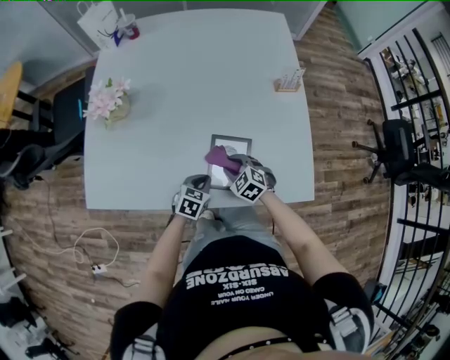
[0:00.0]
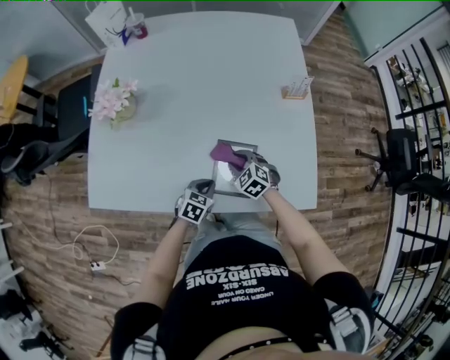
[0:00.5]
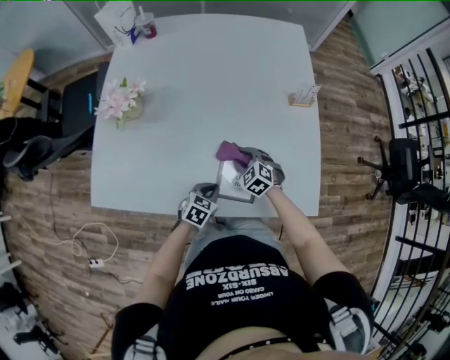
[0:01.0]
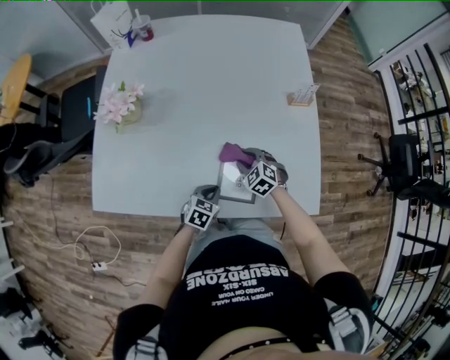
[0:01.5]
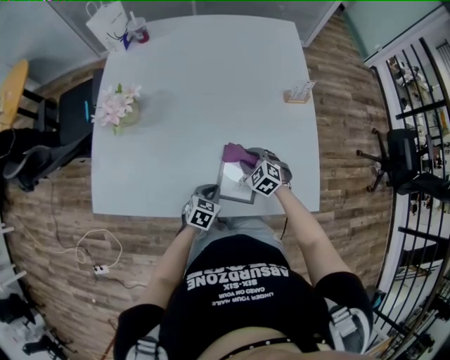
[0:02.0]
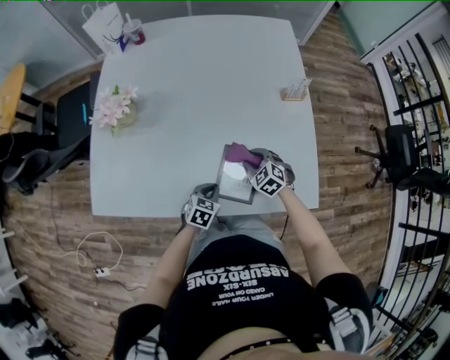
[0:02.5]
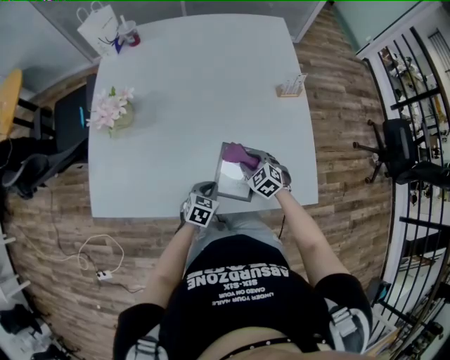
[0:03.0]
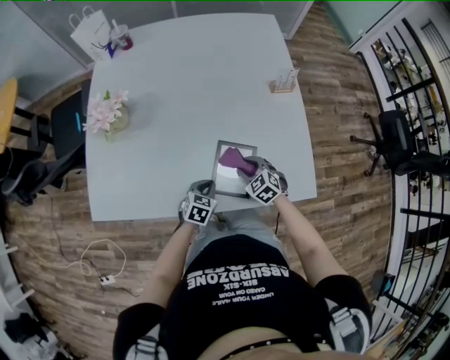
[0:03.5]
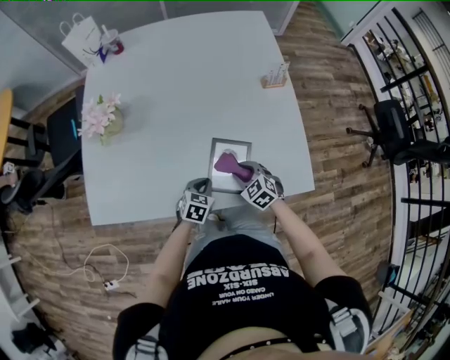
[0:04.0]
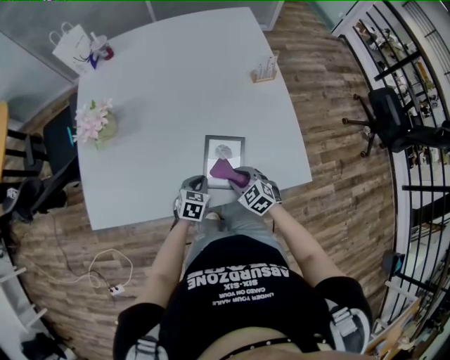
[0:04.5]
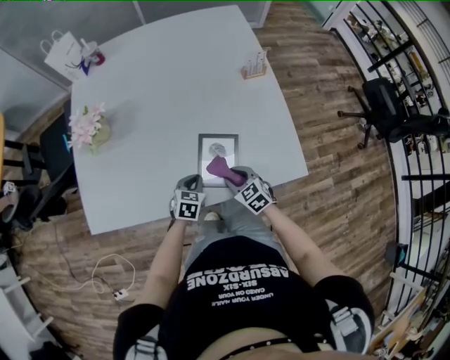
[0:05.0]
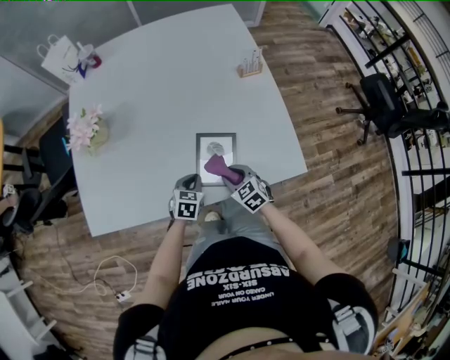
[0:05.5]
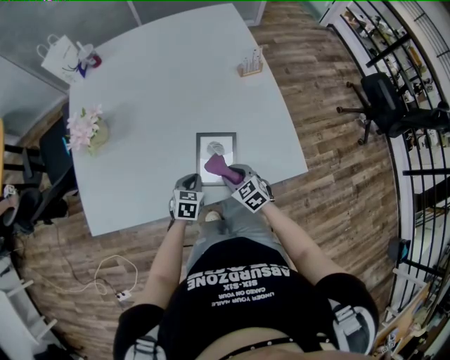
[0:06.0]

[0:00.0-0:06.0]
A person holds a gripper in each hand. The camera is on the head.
0:00.0 to 0:02.0: The right gripper is displaced forward by some 5 cm.
0:02.0 to 0:04.0: The right gripper travels backward by roughly 10 cm.
0:04.0 to 0:06.0: There are only small adjustments of the grippers.

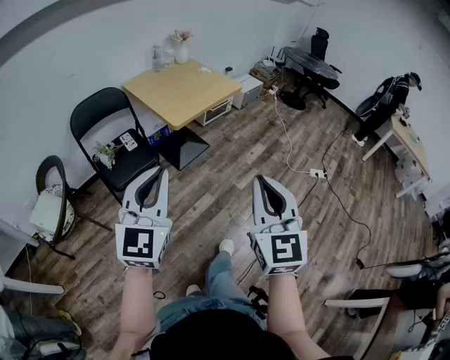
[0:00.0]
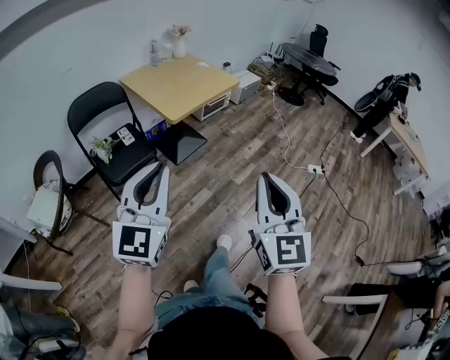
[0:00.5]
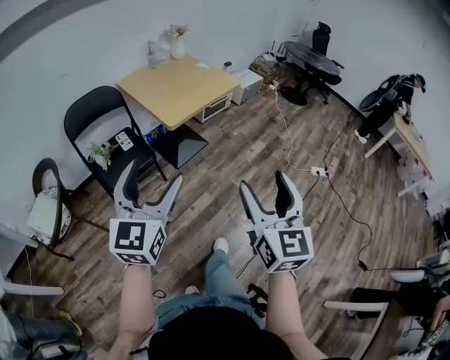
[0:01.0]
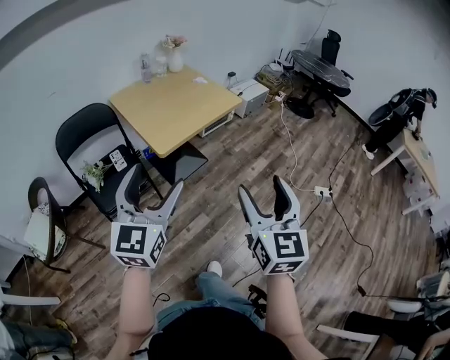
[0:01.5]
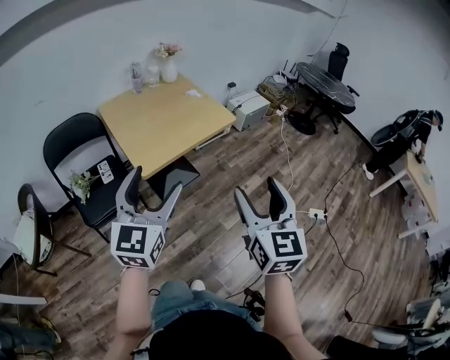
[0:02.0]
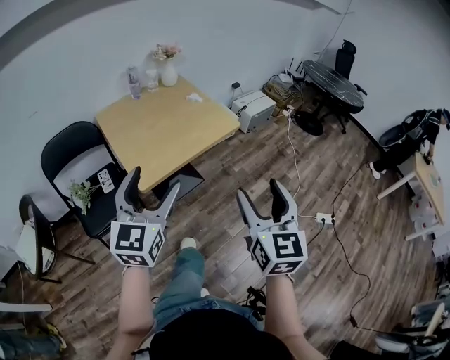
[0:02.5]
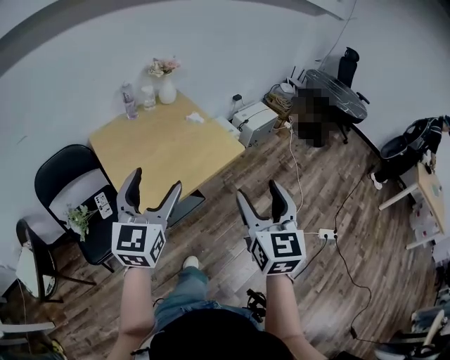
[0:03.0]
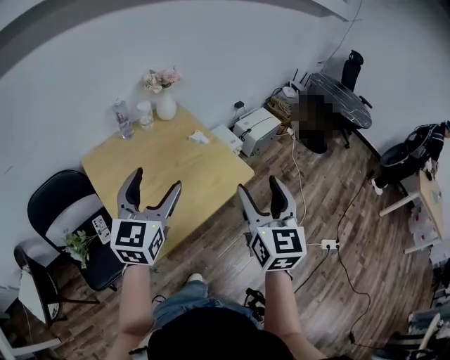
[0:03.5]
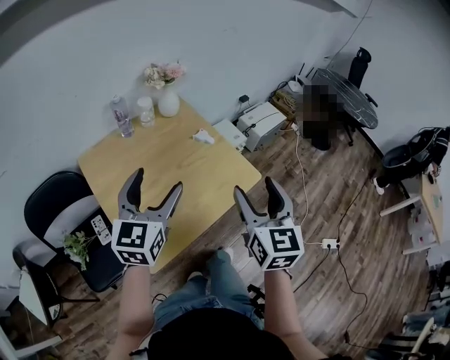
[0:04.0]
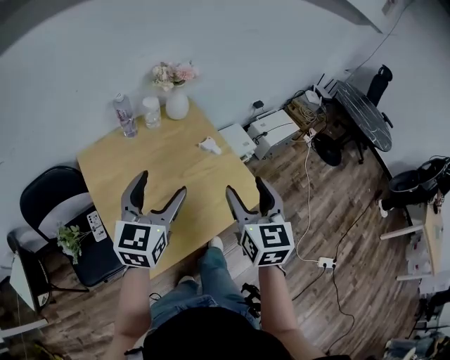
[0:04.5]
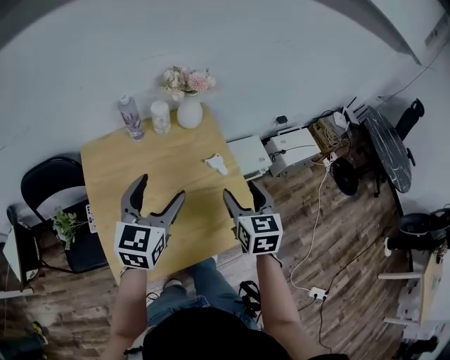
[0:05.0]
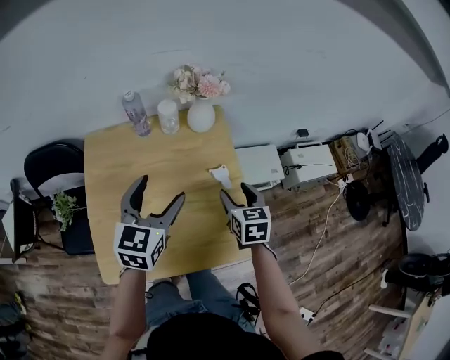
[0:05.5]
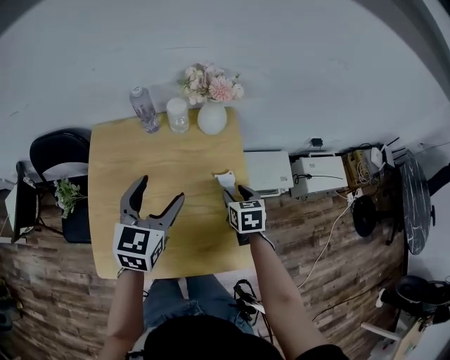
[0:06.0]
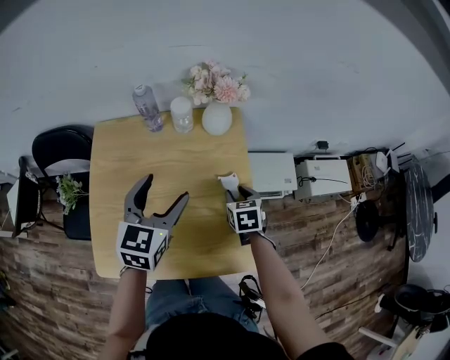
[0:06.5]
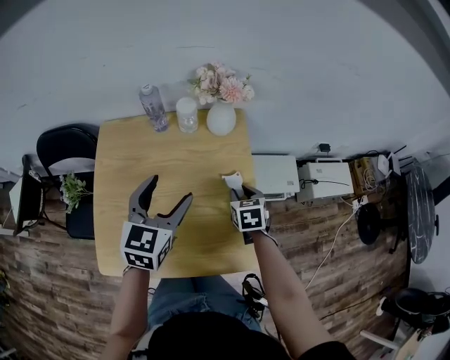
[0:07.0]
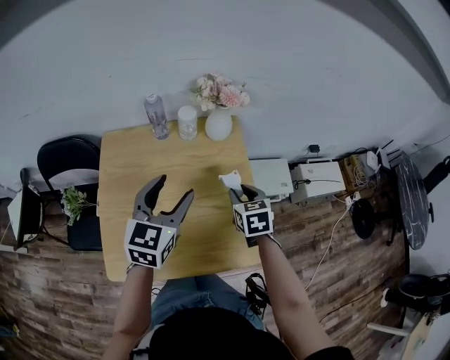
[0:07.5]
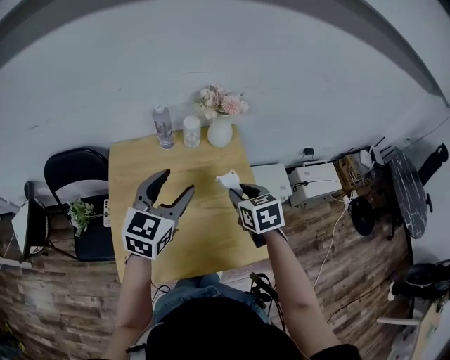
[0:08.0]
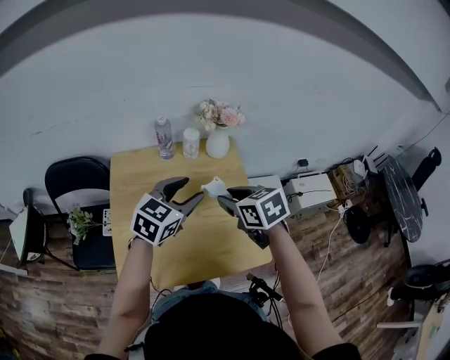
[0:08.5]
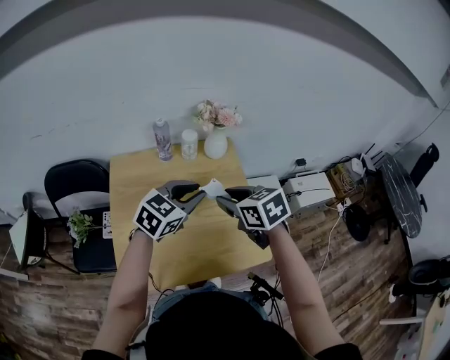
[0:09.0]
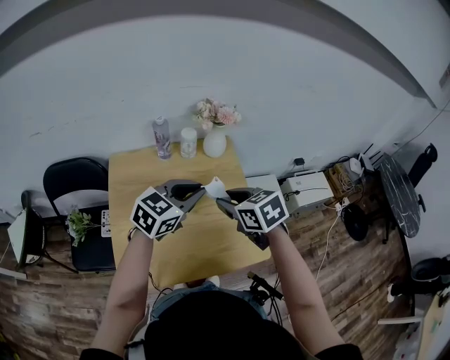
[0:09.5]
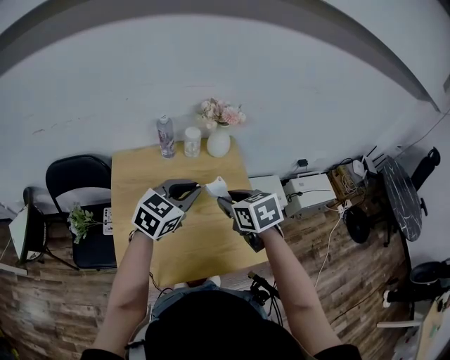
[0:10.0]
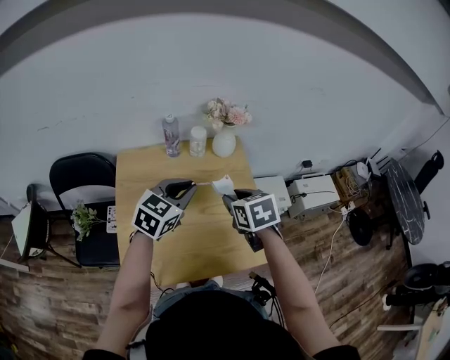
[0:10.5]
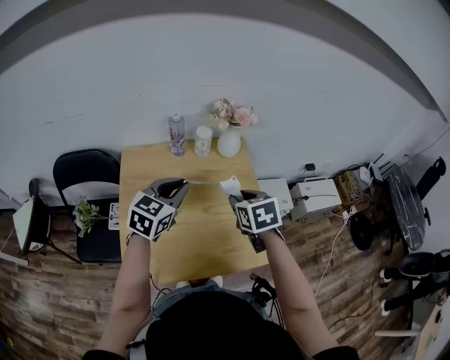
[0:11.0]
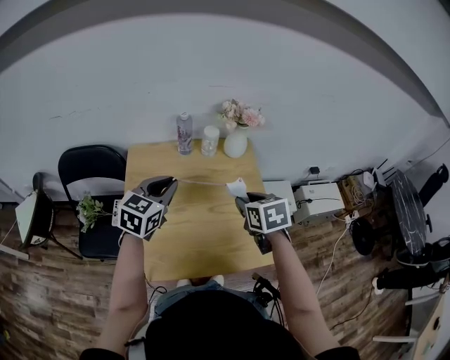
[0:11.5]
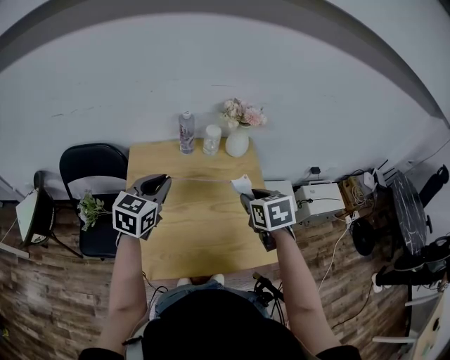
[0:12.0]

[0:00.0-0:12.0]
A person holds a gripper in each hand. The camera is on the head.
0:00.0 to 0:02.0: Both grippers move forward, some 35 cm. The left gripper opens. Meanwhile the right gripper opens.
0:02.0 to 0:04.0: The pair of grippers is taken forward, roughly 40 cm.
0:04.0 to 0:06.0: The left gripper shifts by some 20 cm, and changes its angle by about 30 degrees. The right gripper ends up about 40 cm from where it was, tips its fingers downward by about 40 degrees, and closes up.
0:06.0 to 0:08.0: The right gripper goes some 15 cm upward and to the left. The left gripper goes some 5 cm upward.
0:08.0 to 0:10.0: The right gripper shifts by some 5 cm. Meanwhile the left gripper shifts by about 5 cm, and closes.
0:10.0 to 0:12.0: The left gripper travels to the left by approximately 15 cm, and swivels some 20 degrees.

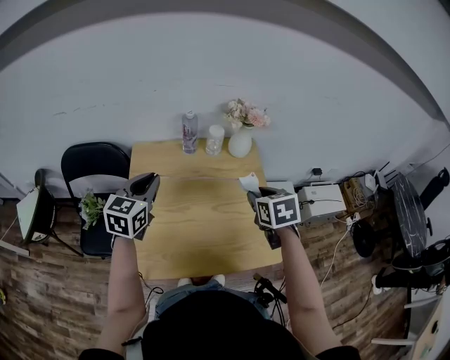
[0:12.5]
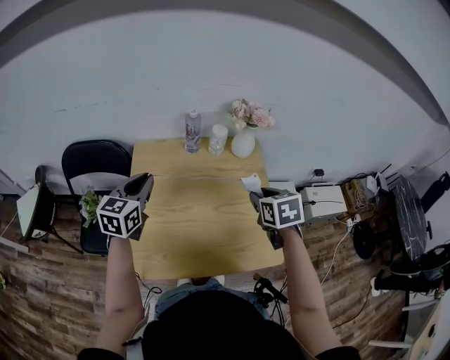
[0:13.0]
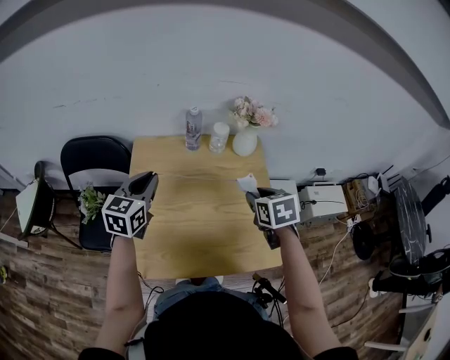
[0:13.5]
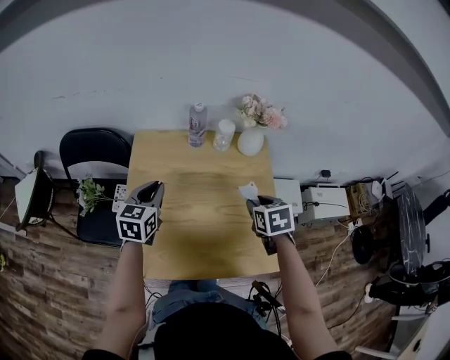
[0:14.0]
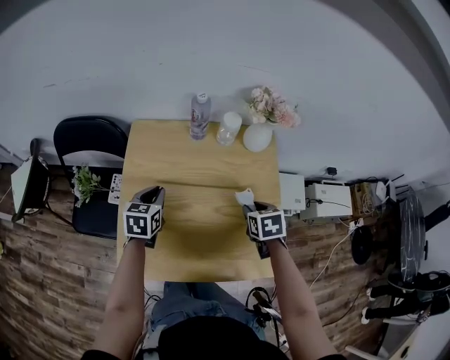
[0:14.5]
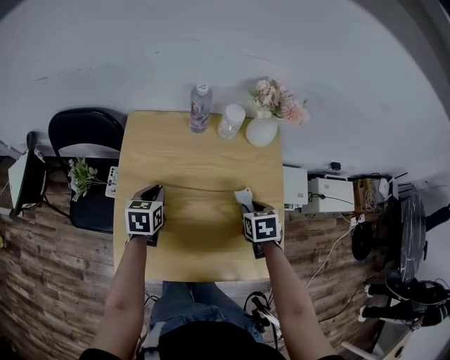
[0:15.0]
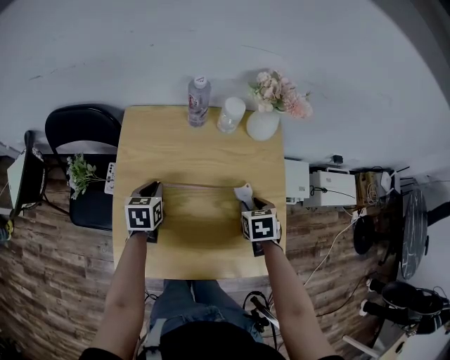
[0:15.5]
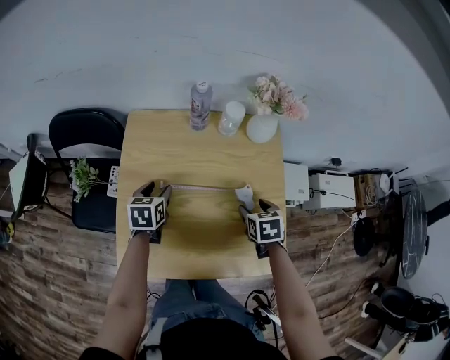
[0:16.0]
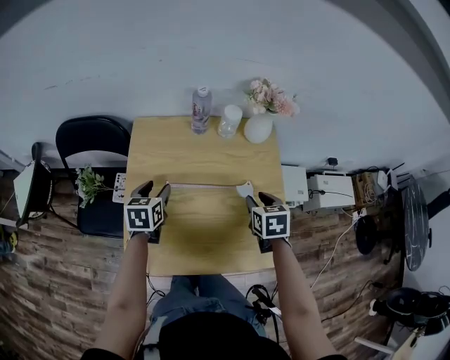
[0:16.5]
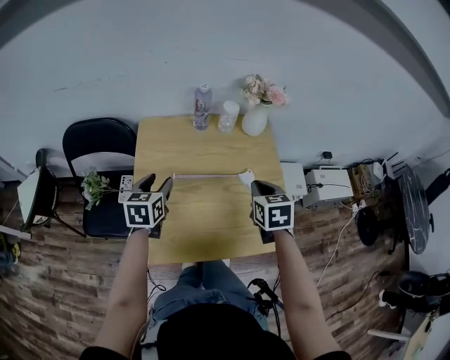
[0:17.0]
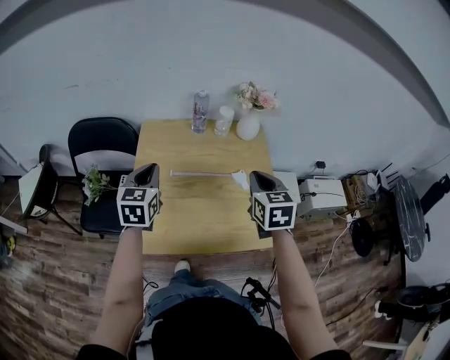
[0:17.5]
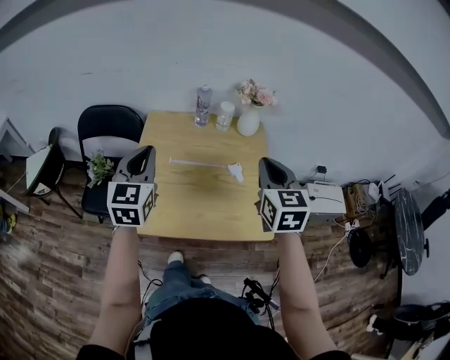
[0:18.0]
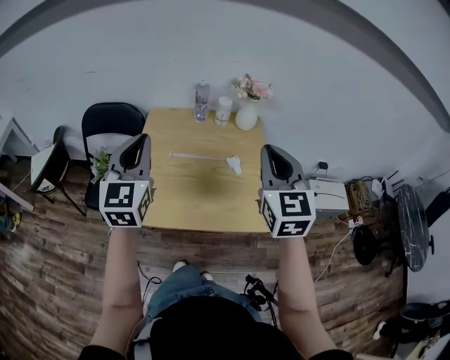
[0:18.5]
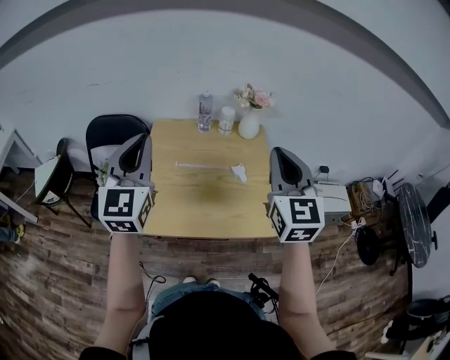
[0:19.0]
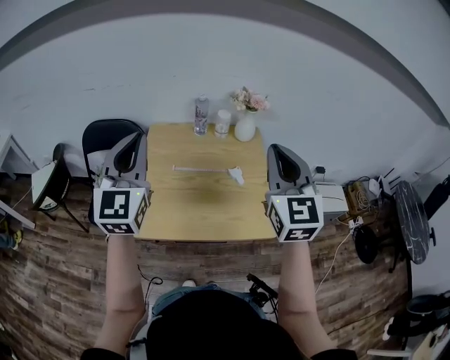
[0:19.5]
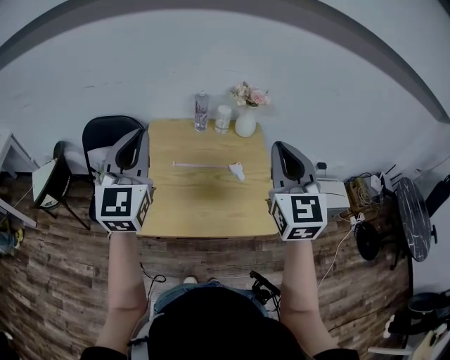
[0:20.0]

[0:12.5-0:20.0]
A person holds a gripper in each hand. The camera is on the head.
0:12.5 to 0:14.5: The grippers both shift downward by roughly 15 cm. The left gripper changes its angle by approximately 30 degrees.
0:14.5 to 0:16.5: The right gripper goes downward and returns, some 5 cm each way, and opens and closes again. The left gripper opens its fingers.
0:16.5 to 0:18.0: The two grippers go some 30 cm upward and backward. The left gripper points its fingers some 30 degrees further upward, and closes its fingers; the right gripper angles its fingers upward, by some 30 degrees, and closes.
0:18.0 to 0:20.0: The grippers both shift upward and backward by roughly 15 cm. The right gripper changes its angle by some 20 degrees.

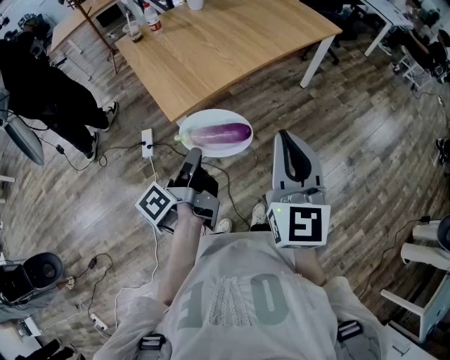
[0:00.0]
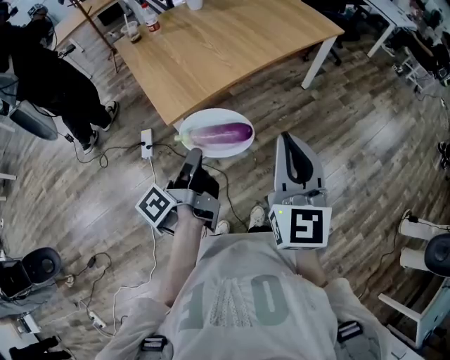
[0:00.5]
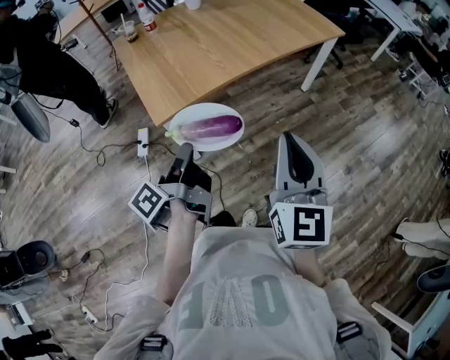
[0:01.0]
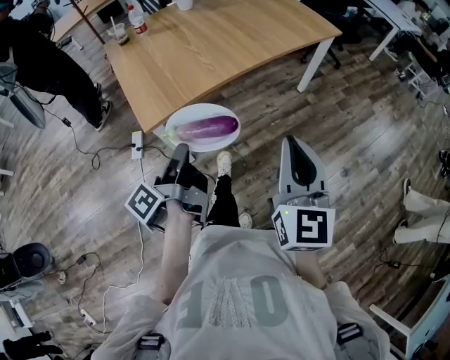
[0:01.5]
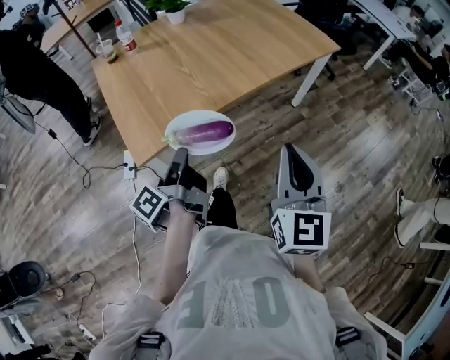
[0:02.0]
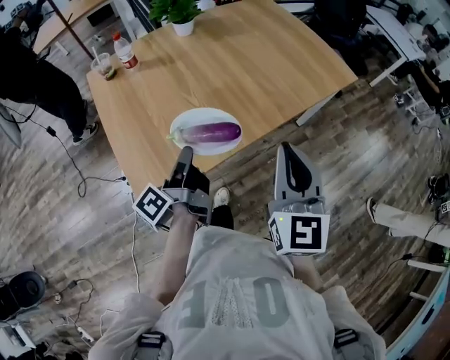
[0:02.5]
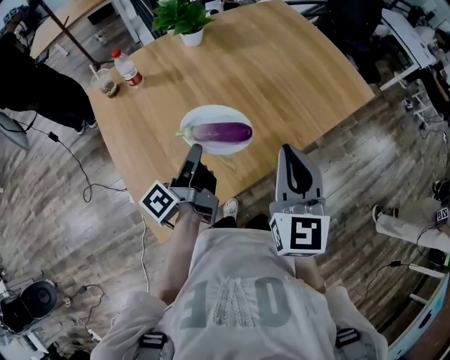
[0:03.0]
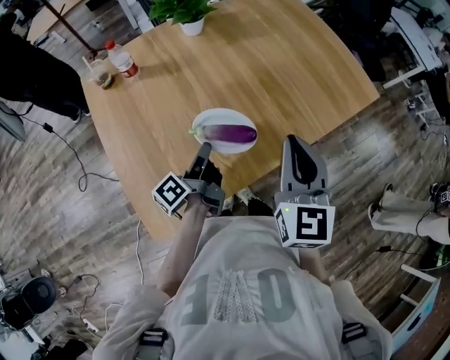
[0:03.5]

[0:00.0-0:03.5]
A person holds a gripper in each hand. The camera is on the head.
0:00.0 to 0:02.0: The right gripper shifts by approximately 20 cm.
0:02.0 to 0:03.5: The right gripper shifts by about 35 cm.
